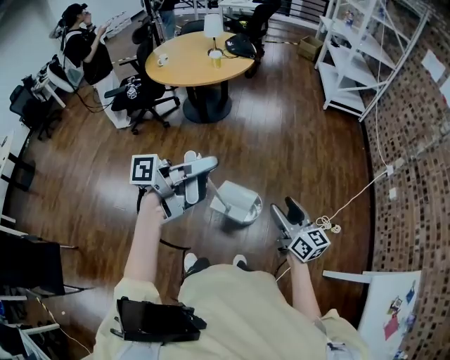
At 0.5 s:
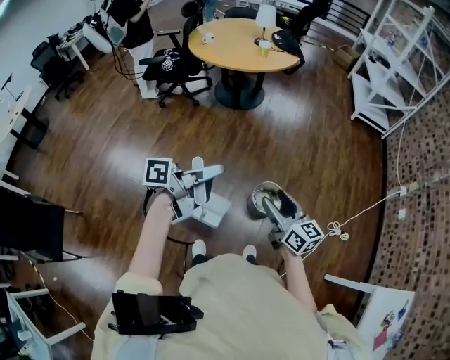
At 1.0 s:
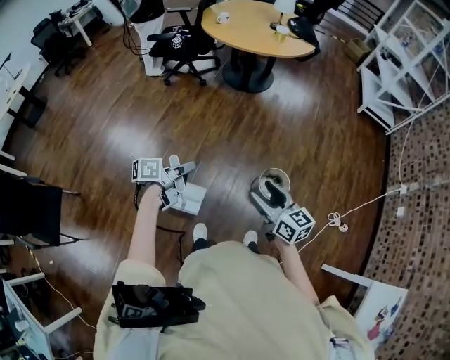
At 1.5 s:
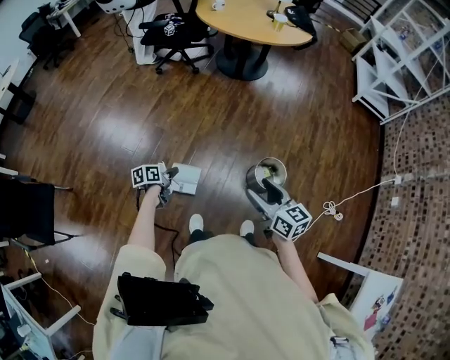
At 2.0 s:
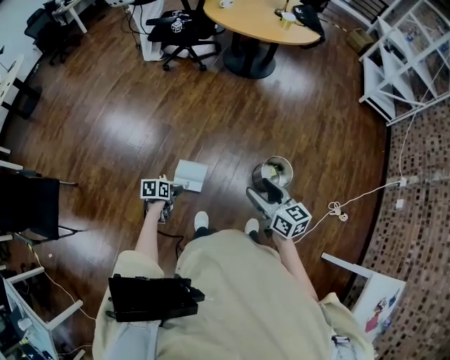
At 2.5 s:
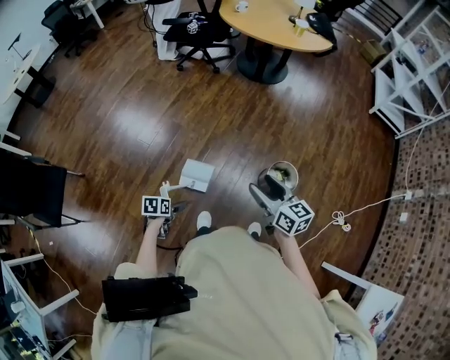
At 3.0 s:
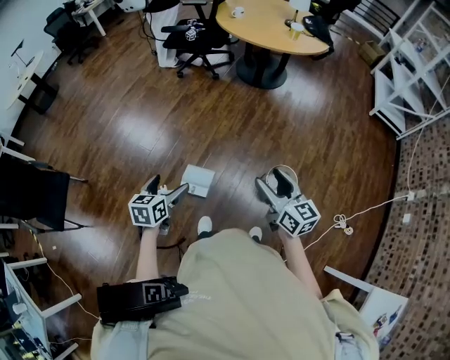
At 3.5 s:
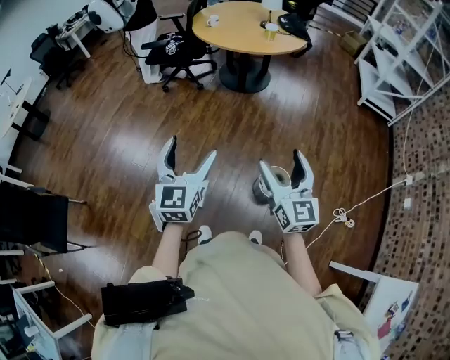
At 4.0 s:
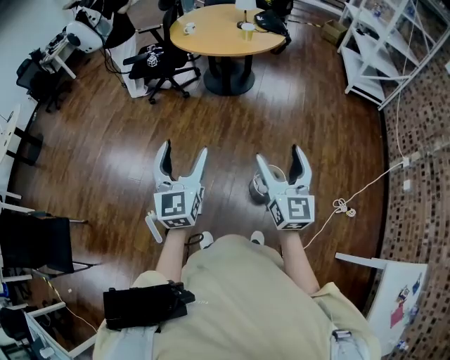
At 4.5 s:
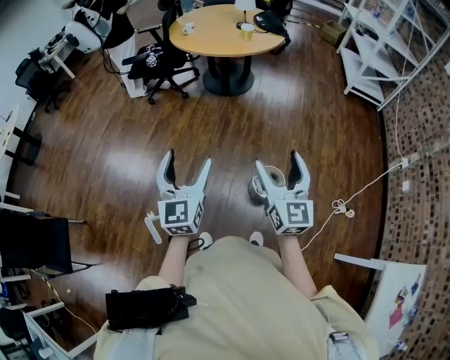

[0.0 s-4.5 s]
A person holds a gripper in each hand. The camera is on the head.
0.0 to 2.0 s: The left gripper heads downward, covering approximately 50 cm, points its fingers some 70 degrees further downward, and opens up. The right gripper shifts by approximately 35 cm, and rotates about 30 degrees.
2.0 to 4.5 s: The left gripper heads upward and to the right, covering some 50 cm, points its fingers about 50 degrees further upward, and opens, while the right gripper is displaced upward and to the right by approximately 20 cm, and changes its angle by some 40 degrees.

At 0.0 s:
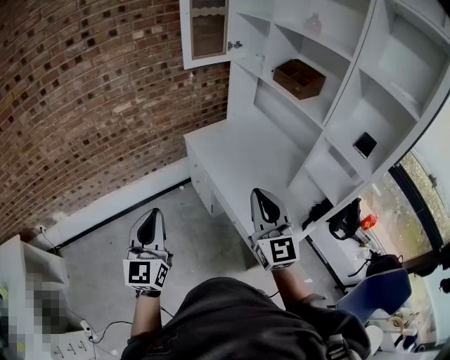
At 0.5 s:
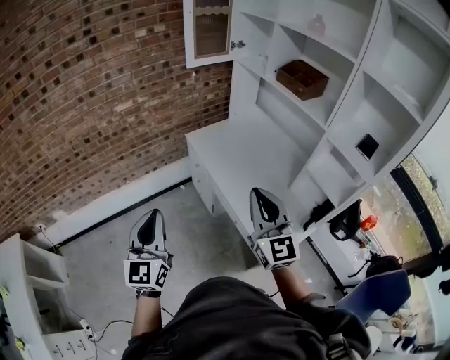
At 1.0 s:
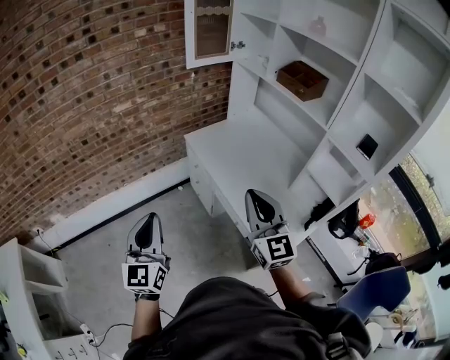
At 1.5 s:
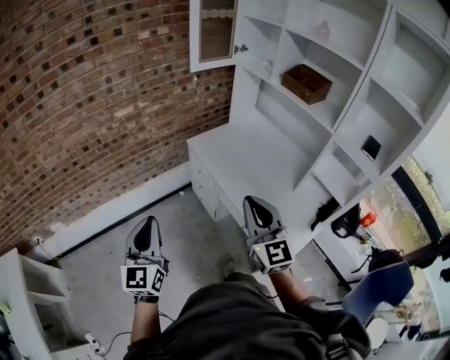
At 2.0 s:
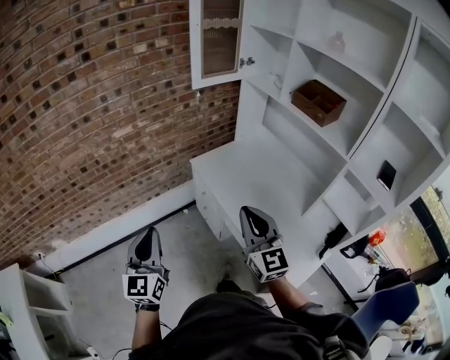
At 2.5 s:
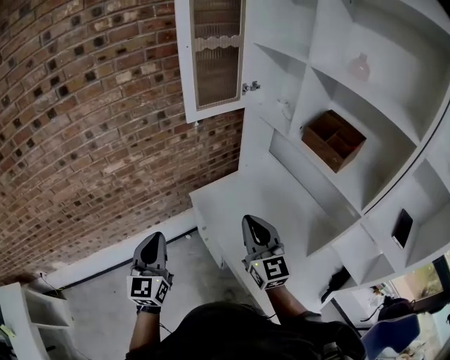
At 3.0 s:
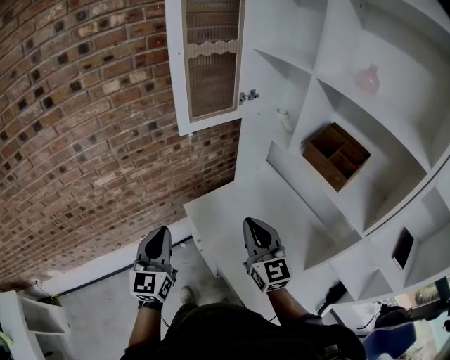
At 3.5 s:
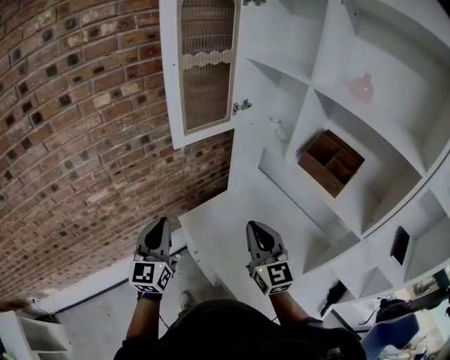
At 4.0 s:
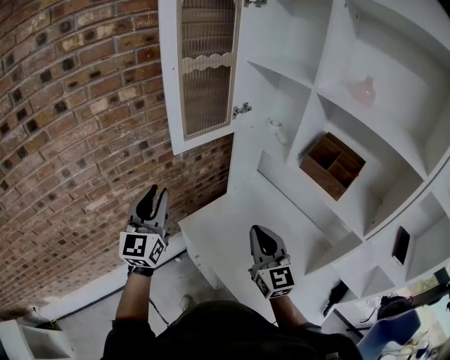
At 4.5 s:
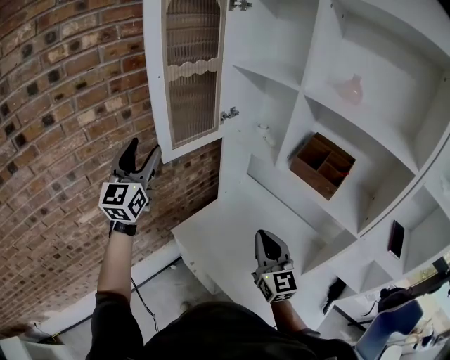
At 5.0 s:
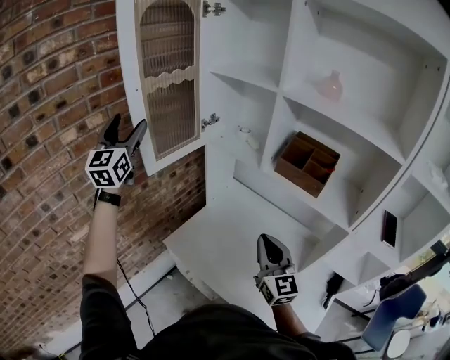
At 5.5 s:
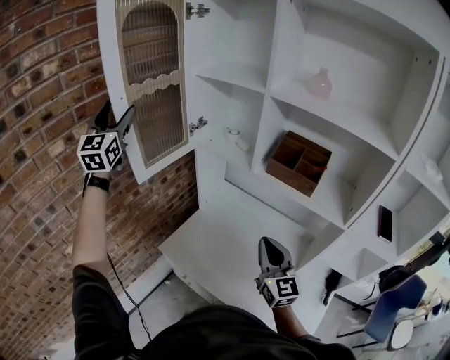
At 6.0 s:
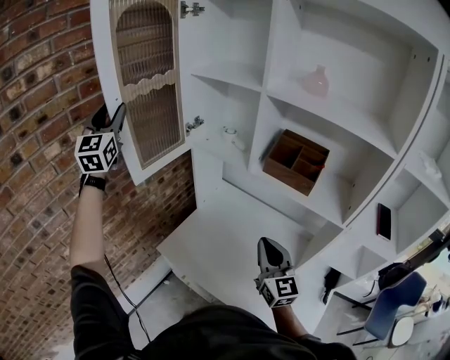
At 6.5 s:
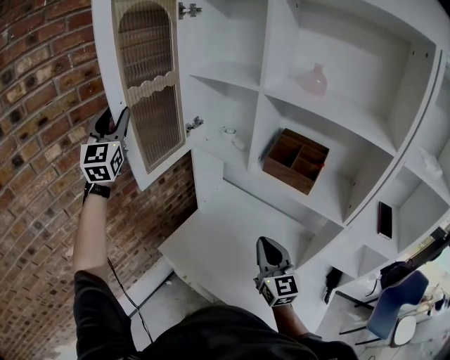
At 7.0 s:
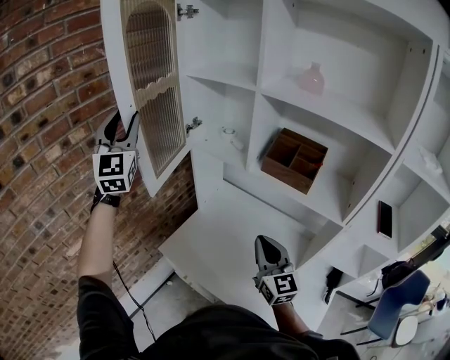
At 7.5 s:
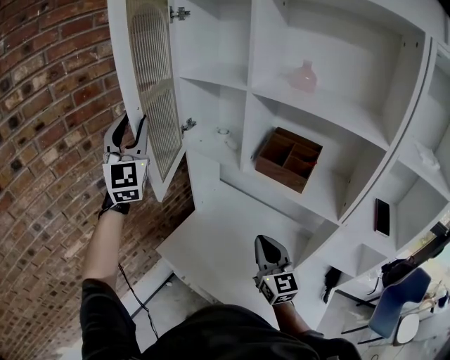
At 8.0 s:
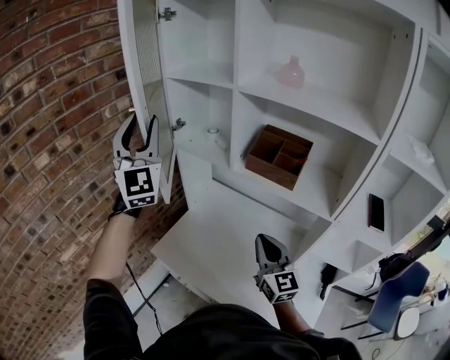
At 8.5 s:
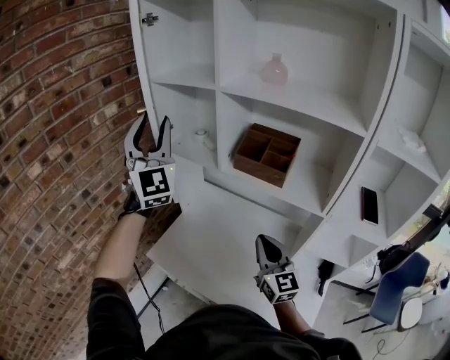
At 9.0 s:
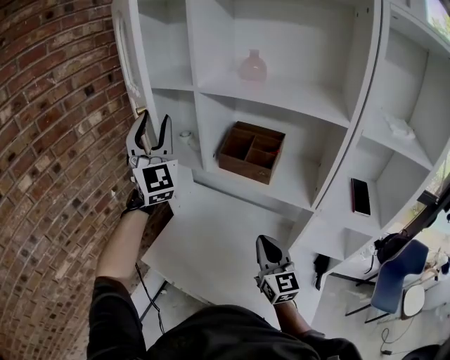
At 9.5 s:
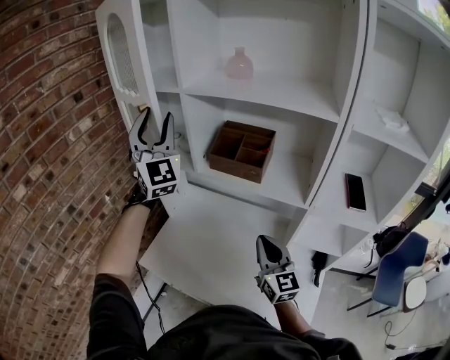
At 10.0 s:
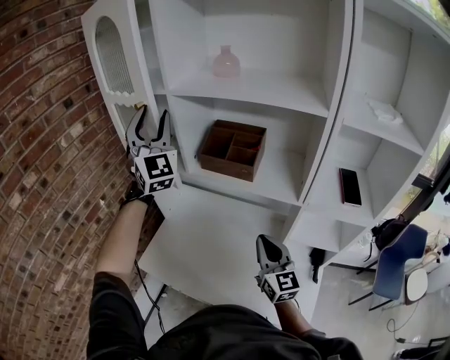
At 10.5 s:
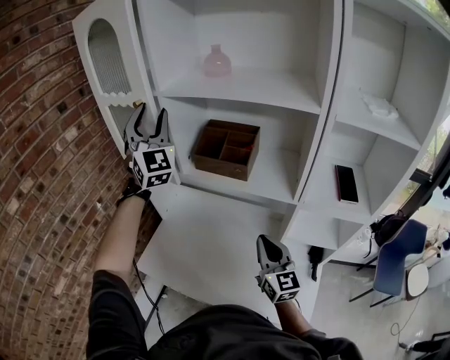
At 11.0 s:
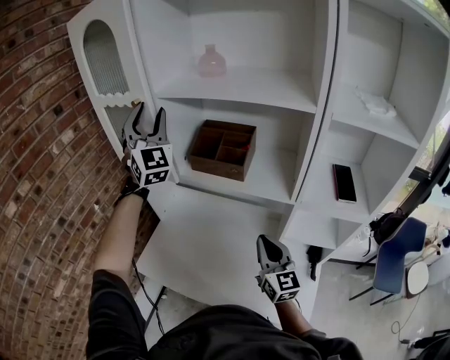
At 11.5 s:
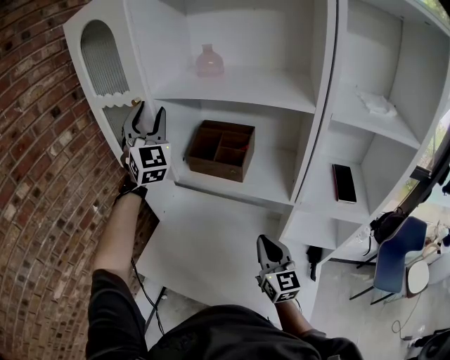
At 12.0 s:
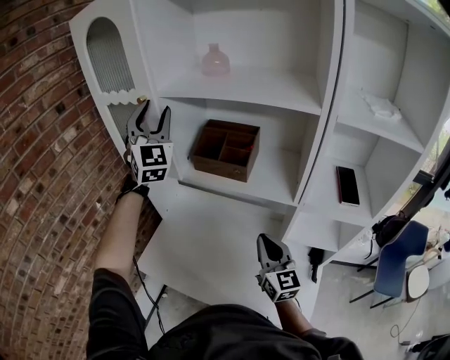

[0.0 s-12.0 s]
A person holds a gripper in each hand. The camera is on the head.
0.0 to 2.0 s: The grippers both shift forward and to the left by some 15 cm.
2.0 to 4.0 s: Both grippers move forward, roughly 35 cm.
4.0 to 6.0 s: The right gripper travels to the right by roughly 10 cm. The left gripper shifts some 30 cm forward and upward, and opens, then closes once more.
6.0 to 8.0 s: The left gripper shifts approximately 20 cm to the right and backward.
8.0 to 10.0 s: The right gripper moves to the right, about 10 cm. Meanwhile the left gripper travels to the right and forward by about 20 cm.
10.0 to 12.0 s: The grippers move only a little.

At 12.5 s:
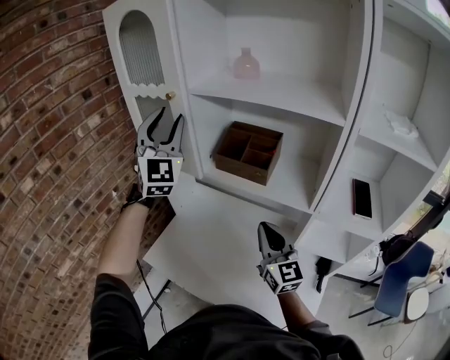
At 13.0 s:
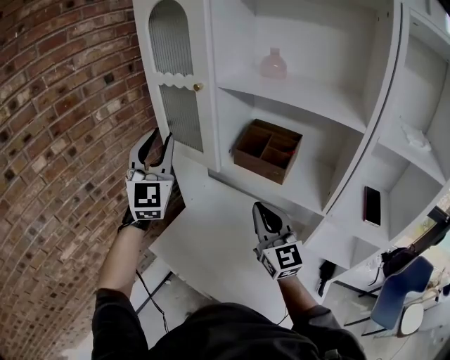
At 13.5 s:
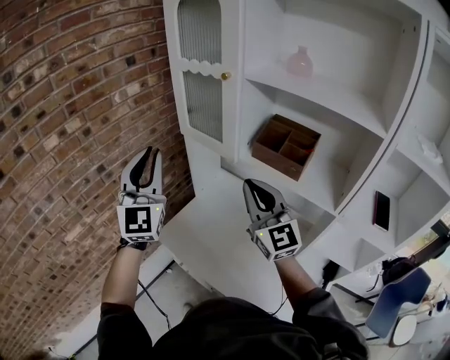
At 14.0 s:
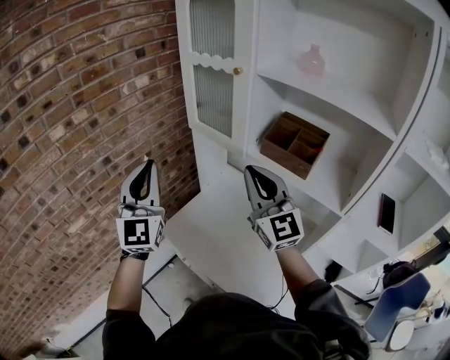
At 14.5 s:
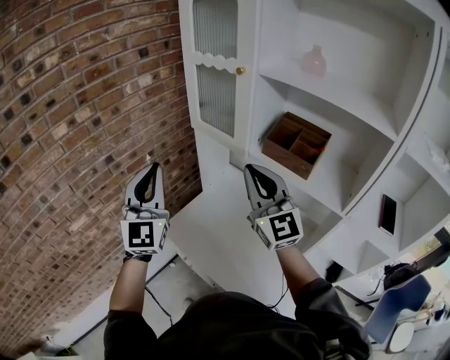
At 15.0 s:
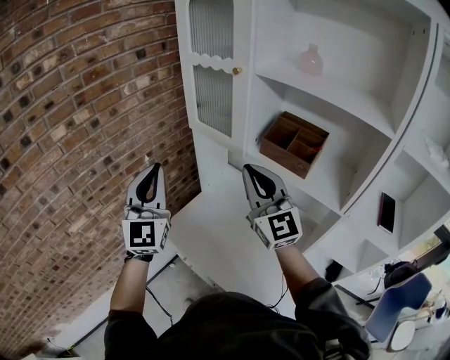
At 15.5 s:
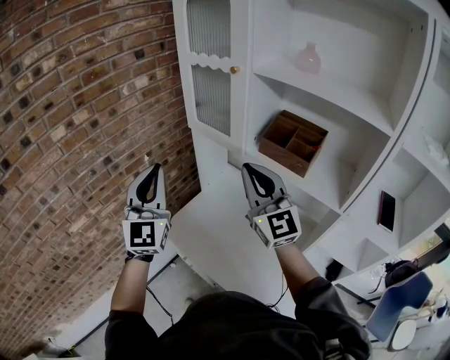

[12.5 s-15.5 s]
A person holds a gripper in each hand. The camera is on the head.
12.5 to 14.0 s: The left gripper heads to the left, backward and downward, covering roughly 25 cm, rotates roughly 20 degrees, and closes its fingers; the right gripper moves to the left, upward and forward, some 20 cm, and rotates approximately 30 degrees.
14.0 to 15.5 s: The grippers move only a little.

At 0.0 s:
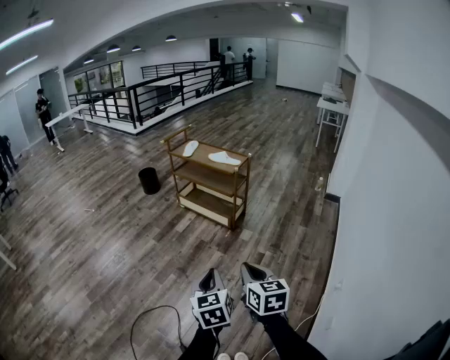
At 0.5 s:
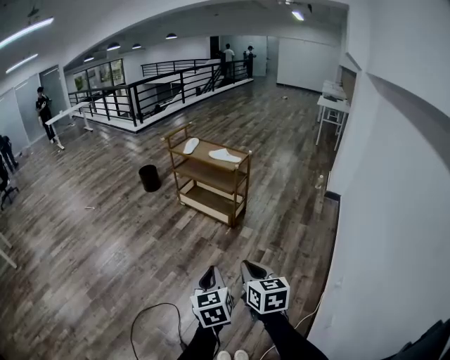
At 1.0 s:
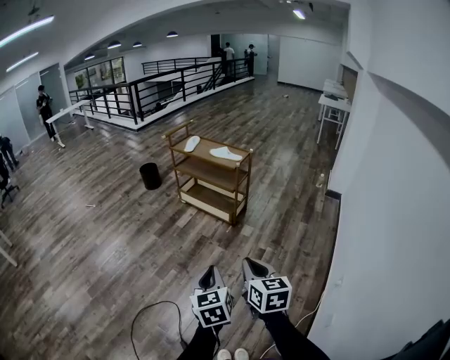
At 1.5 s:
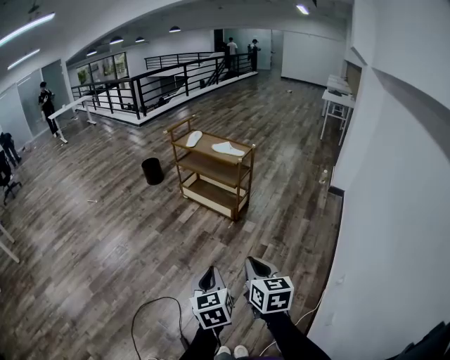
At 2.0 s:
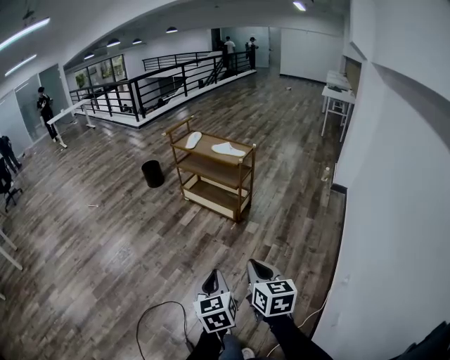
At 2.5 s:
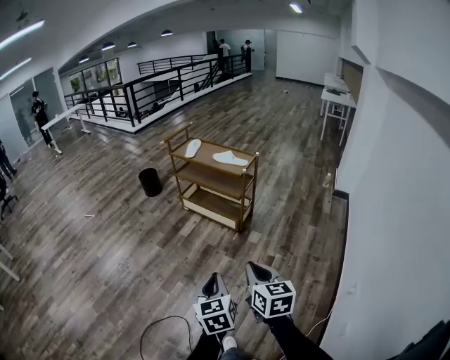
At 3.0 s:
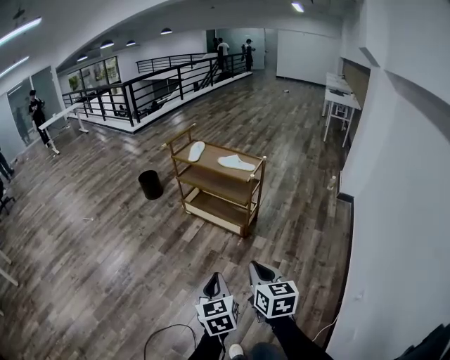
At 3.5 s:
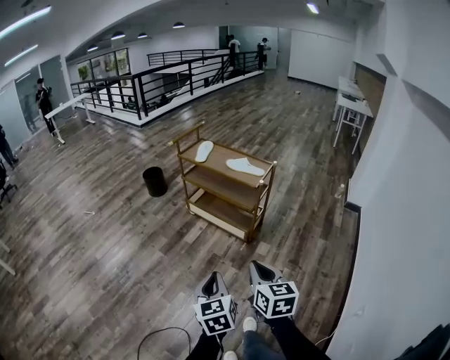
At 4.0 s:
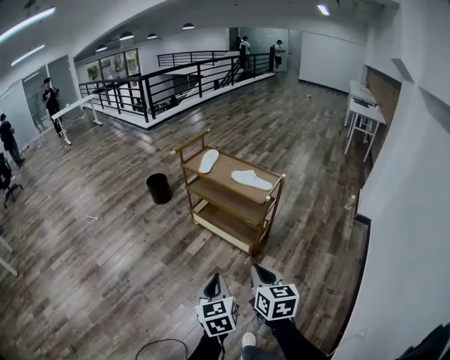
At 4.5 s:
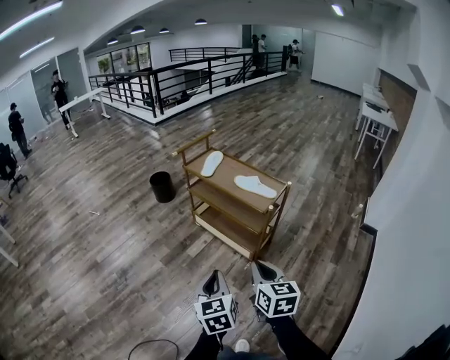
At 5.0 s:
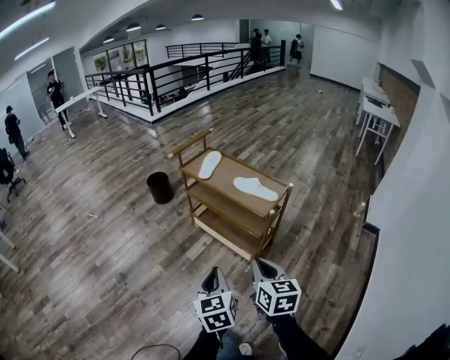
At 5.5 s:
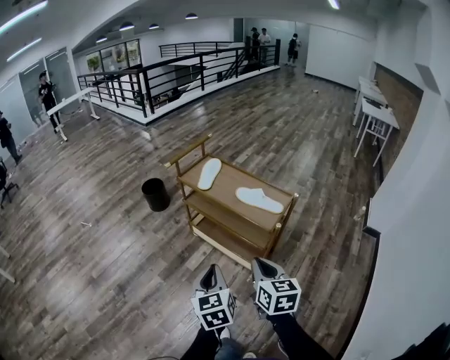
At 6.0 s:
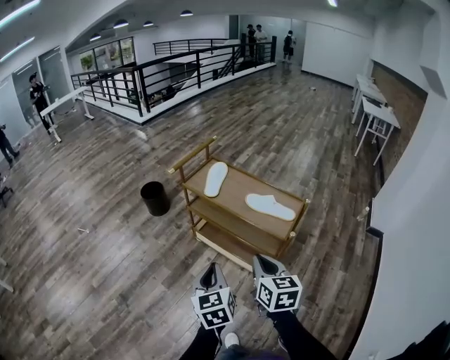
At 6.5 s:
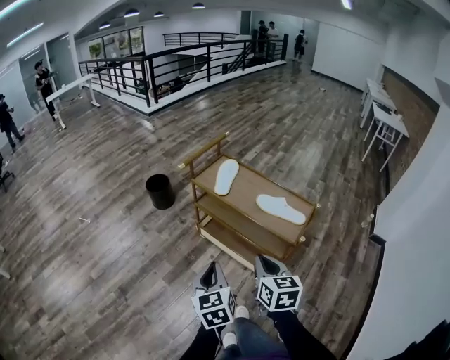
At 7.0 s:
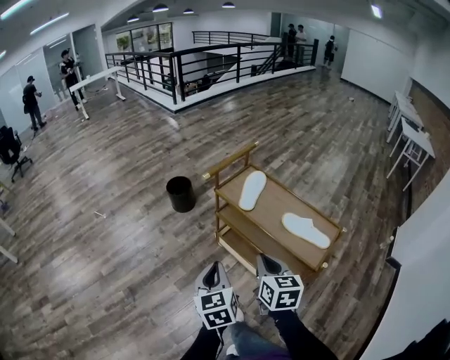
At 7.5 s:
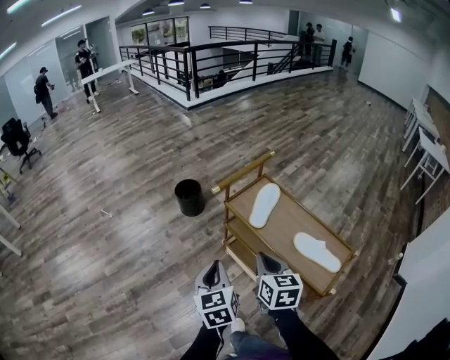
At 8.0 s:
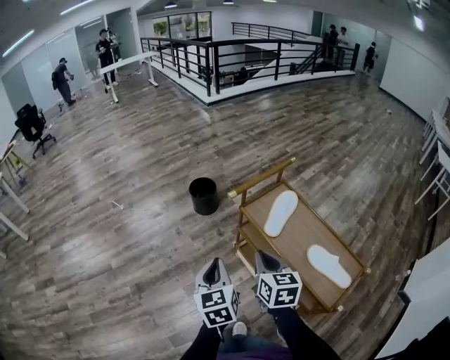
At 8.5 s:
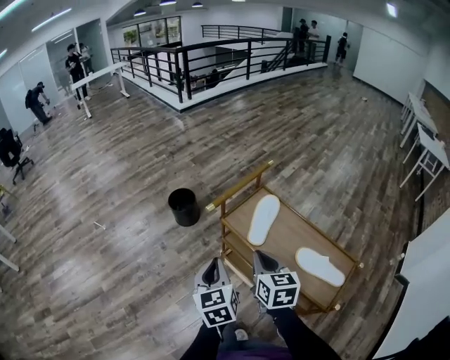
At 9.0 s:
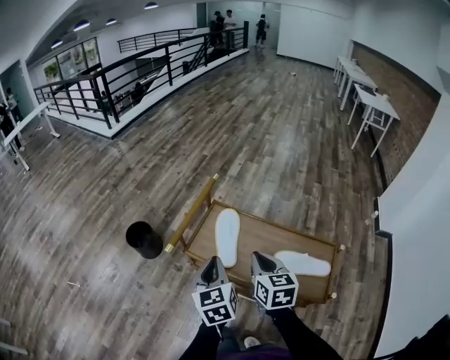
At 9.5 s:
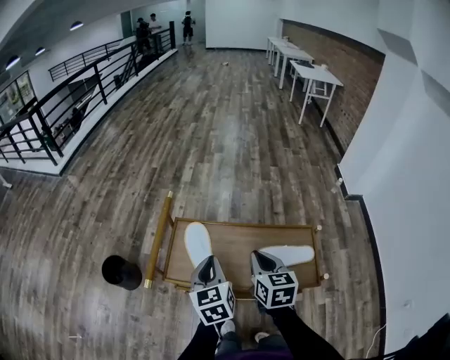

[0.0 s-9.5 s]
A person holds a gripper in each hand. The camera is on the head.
0.0 to 2.0 s: The grippers stay close to where they were, moving slightly.
2.0 to 4.0 s: The grippers both shift forward by roughly 35 cm.
4.0 to 5.5 s: Both grippers move forward, about 25 cm.
5.5 to 7.5 s: The left gripper goes roughly 35 cm forward and to the left, while the right gripper is displaced forward by approximately 35 cm.
7.5 to 9.5 s: The right gripper changes place by some 20 cm, and swivels approximately 40 degrees; the left gripper moves about 30 cm, and changes its angle by about 40 degrees.
